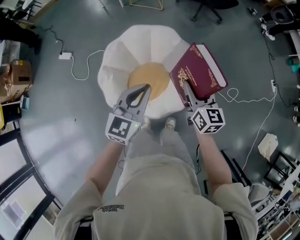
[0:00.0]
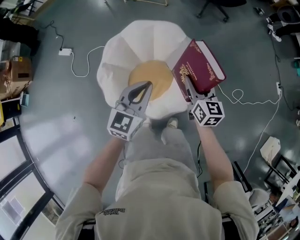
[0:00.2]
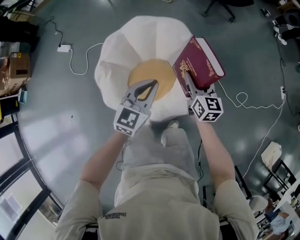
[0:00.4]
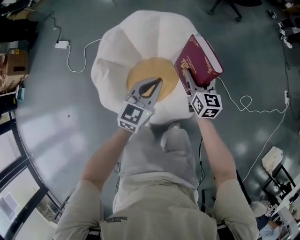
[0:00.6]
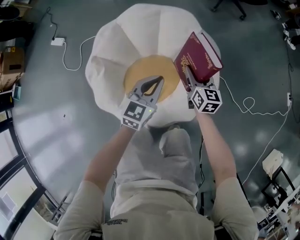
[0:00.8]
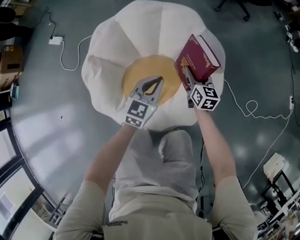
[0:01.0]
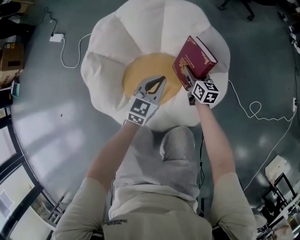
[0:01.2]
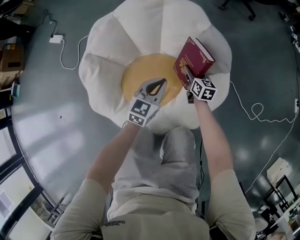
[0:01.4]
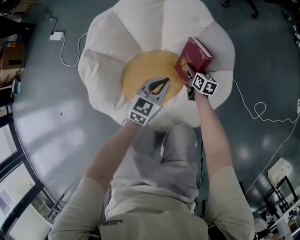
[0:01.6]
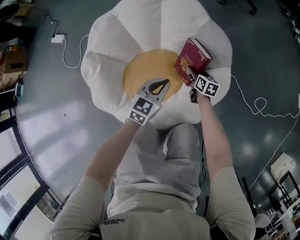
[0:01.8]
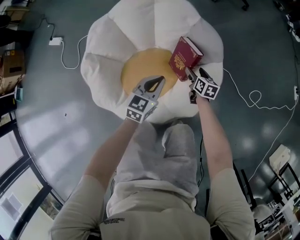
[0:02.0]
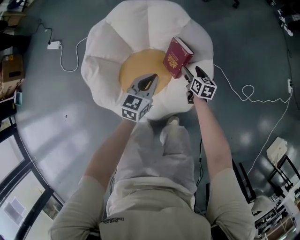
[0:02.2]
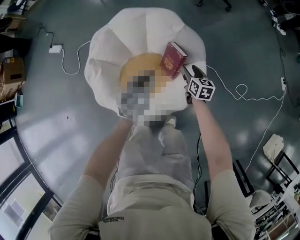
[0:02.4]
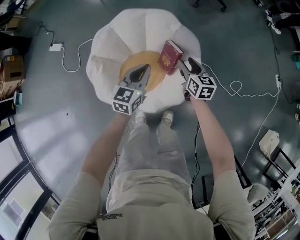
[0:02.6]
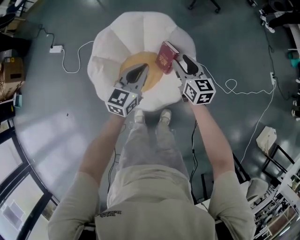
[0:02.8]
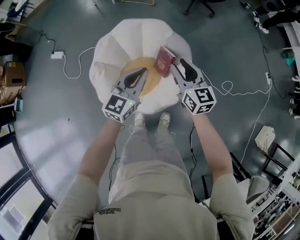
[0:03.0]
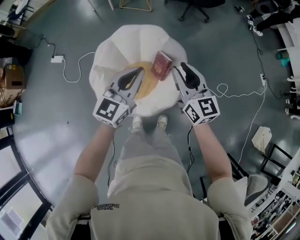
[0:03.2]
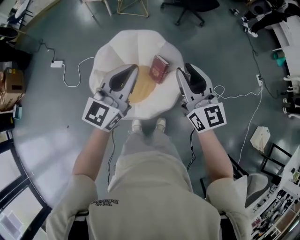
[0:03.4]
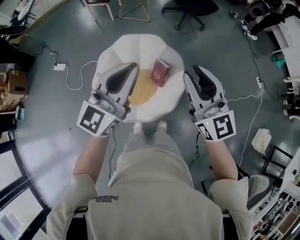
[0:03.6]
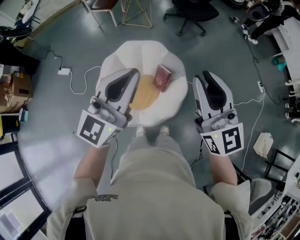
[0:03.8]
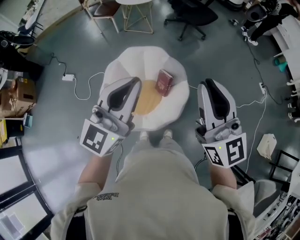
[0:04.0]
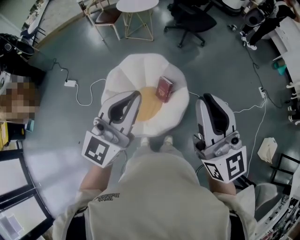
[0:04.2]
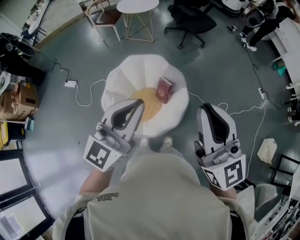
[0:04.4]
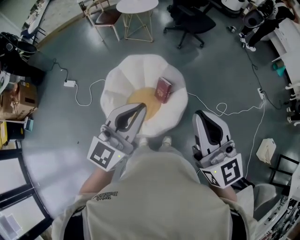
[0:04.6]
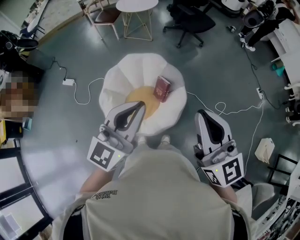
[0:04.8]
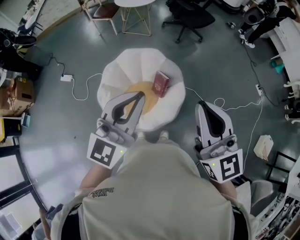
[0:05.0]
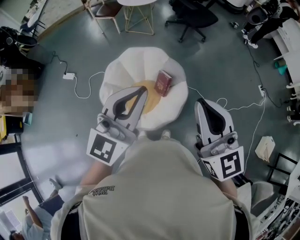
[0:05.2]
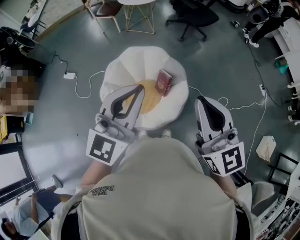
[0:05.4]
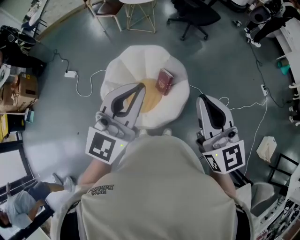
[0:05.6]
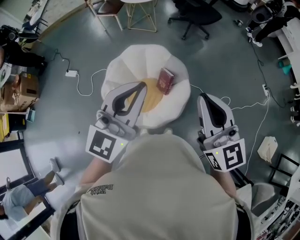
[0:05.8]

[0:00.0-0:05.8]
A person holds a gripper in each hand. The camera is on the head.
0:00.0 to 0:01.4: Both grippers travel together downward, some 50 cm.
0:01.4 to 0:02.8: Both grippers move upward, approximately 40 cm.
0:02.8 to 0:04.4: Both grippers travel together upward and backward, roughly 50 cm. The right gripper angles its fingers upward, by approximately 30 degrees, and closes; the left gripper swivels approximately 30 degrees.
0:04.4 to 0:05.8: The right gripper travels downward by roughly 5 cm.

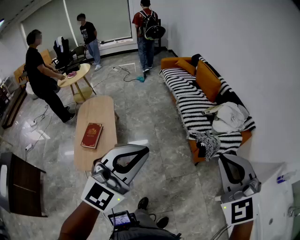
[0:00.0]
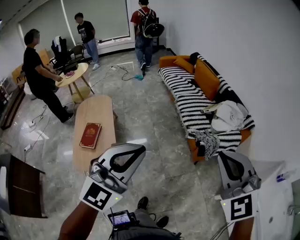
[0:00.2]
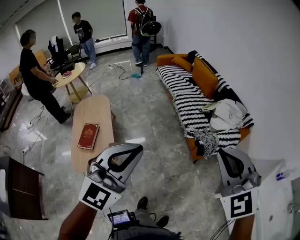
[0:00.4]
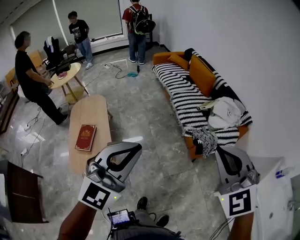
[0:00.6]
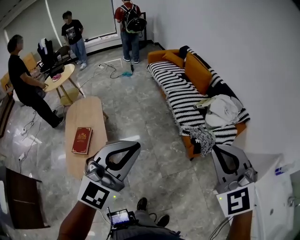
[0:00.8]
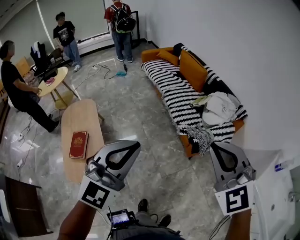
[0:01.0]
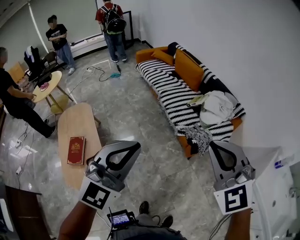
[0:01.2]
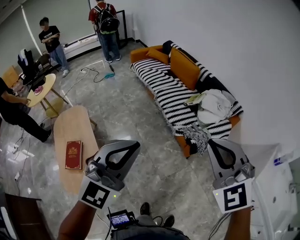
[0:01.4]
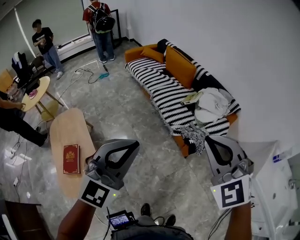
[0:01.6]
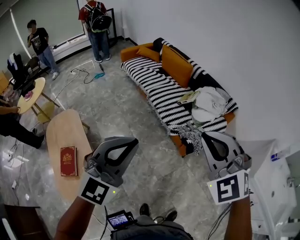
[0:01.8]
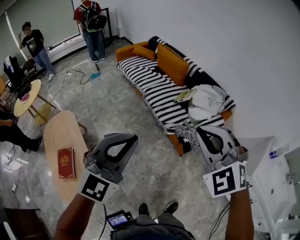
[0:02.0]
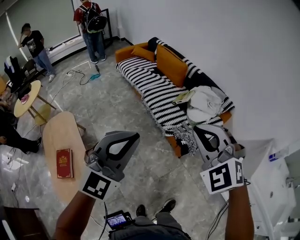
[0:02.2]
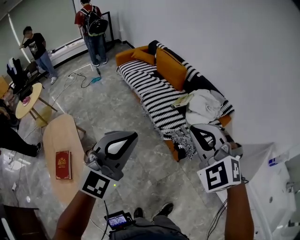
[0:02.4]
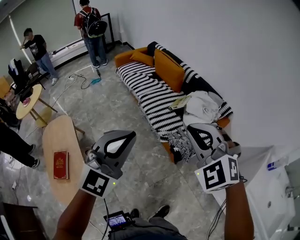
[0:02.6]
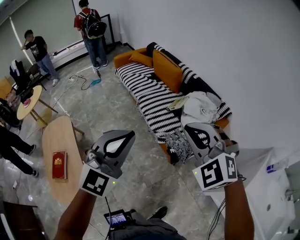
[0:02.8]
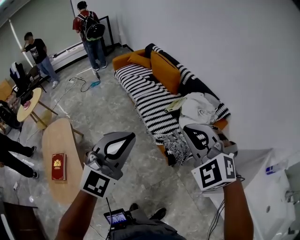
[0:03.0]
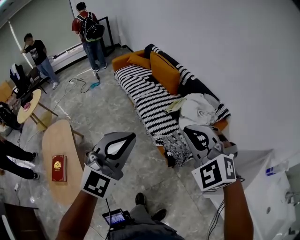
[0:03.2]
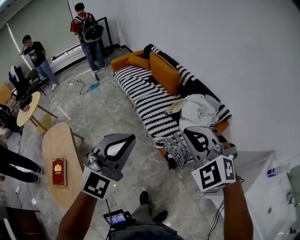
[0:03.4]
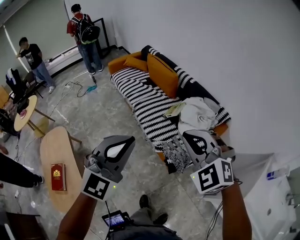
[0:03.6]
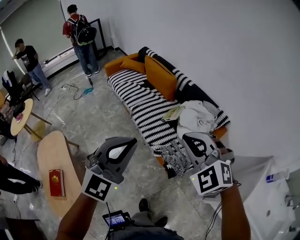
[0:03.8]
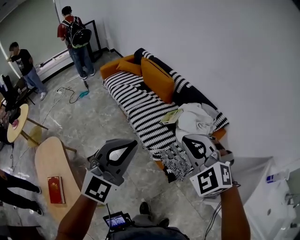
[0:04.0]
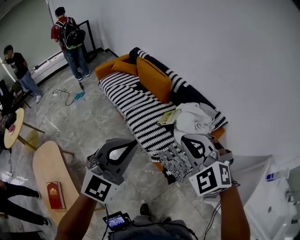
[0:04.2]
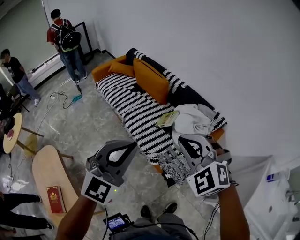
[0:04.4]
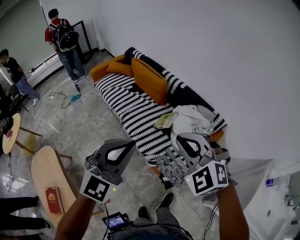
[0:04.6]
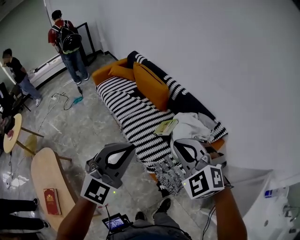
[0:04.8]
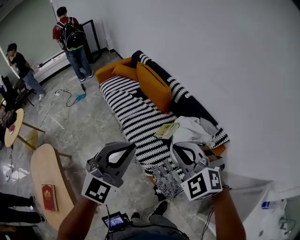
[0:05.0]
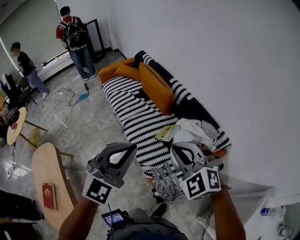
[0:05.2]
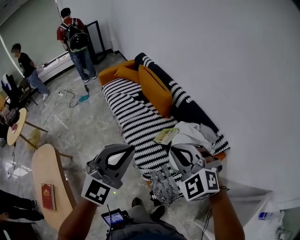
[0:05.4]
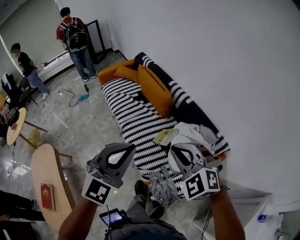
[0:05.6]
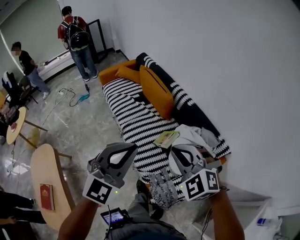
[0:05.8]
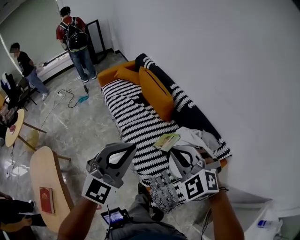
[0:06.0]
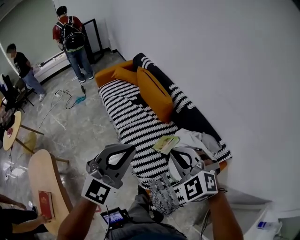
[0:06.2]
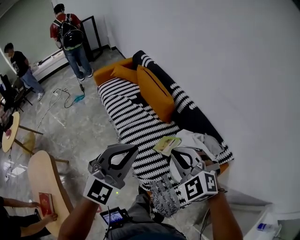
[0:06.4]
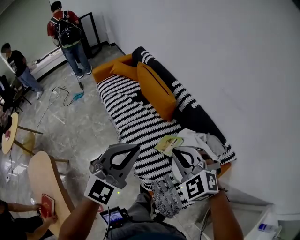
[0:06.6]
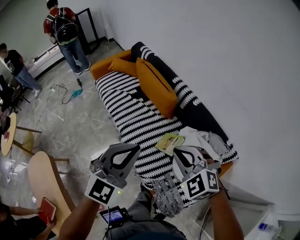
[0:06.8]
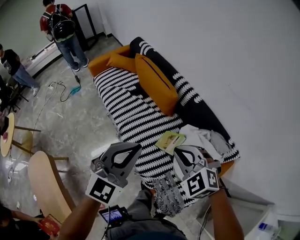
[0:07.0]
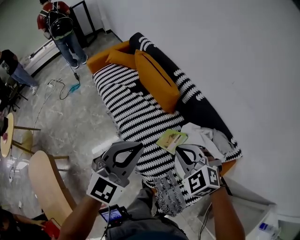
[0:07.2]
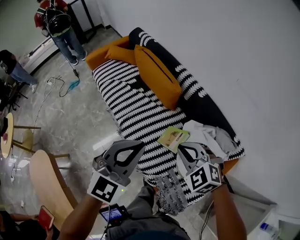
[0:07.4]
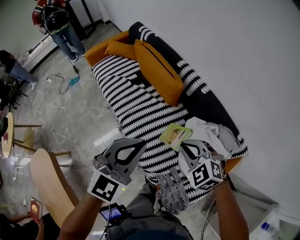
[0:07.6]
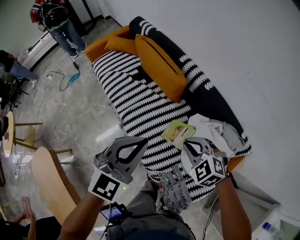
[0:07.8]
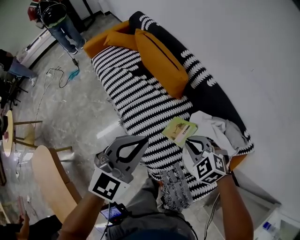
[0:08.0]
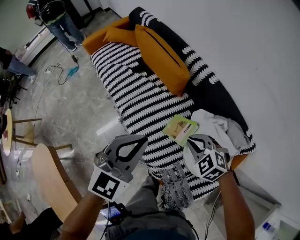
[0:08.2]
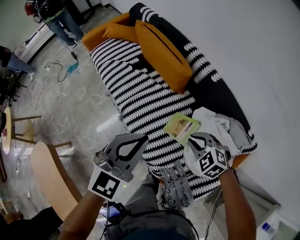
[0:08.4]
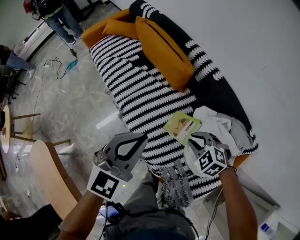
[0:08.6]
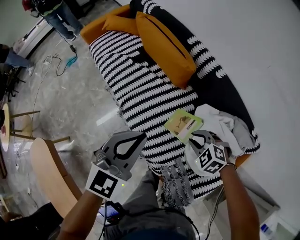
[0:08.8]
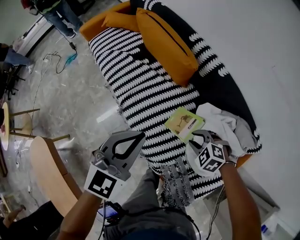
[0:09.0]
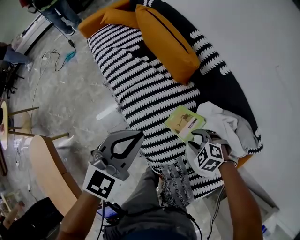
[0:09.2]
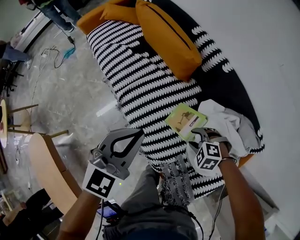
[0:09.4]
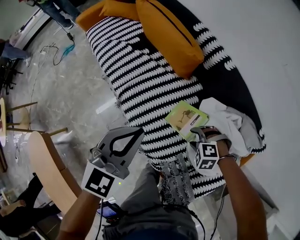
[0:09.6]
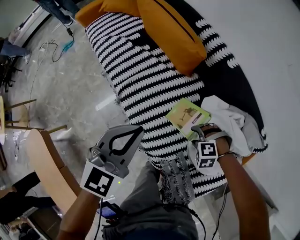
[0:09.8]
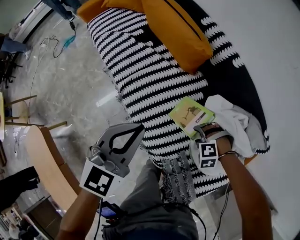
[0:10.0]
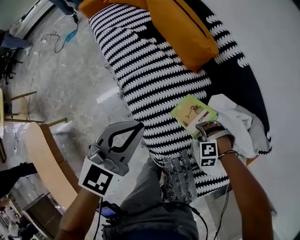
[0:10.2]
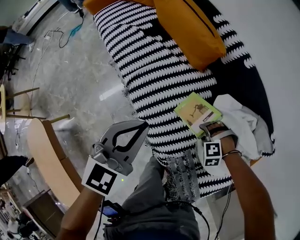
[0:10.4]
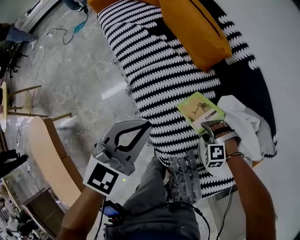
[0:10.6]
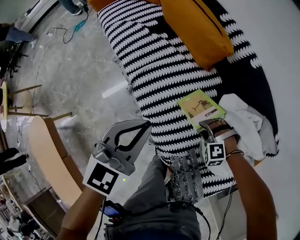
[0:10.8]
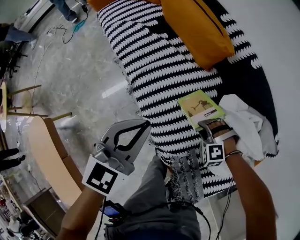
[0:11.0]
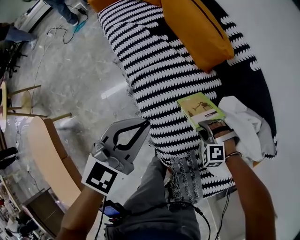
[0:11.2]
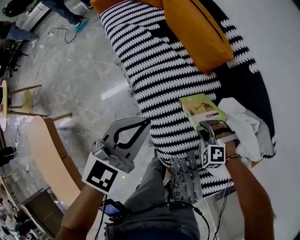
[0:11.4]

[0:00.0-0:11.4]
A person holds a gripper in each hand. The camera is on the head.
0:00.0 to 0:01.4: The left gripper is displaced forward by approximately 15 cm, while the right gripper moves forward and to the left, roughly 15 cm.
0:01.4 to 0:02.8: The two grippers go approximately 20 cm forward and to the right.
0:02.8 to 0:04.2: Both grippers travel together forward, some 15 cm.
0:04.2 to 0:05.6: The grippers both shift forward and to the right by some 20 cm.
0:05.6 to 0:07.2: Both grippers move forward and downward, roughly 25 cm.
0:07.2 to 0:08.6: The right gripper is displaced downward by about 20 cm, and swivels approximately 20 degrees, while the left gripper shifts some 15 cm downward and forward.
0:08.6 to 0:10.0: The left gripper shifts about 10 cm downward, while the right gripper moves downward, some 20 cm, changes its angle by approximately 50 degrees, and opens its fingers.
0:10.0 to 0:11.4: The right gripper moves some 10 cm, and closes up. Meanwhile the left gripper moves approximately 5 cm.

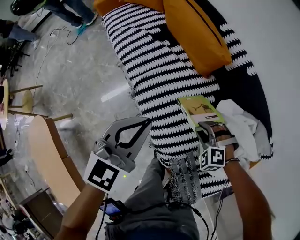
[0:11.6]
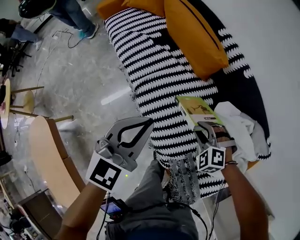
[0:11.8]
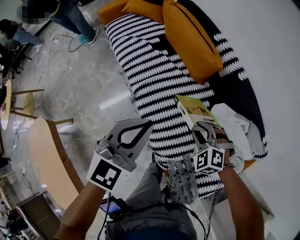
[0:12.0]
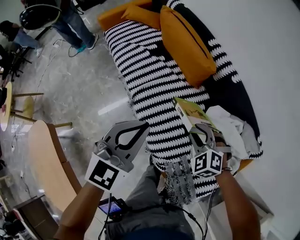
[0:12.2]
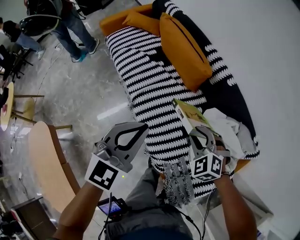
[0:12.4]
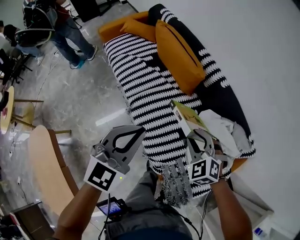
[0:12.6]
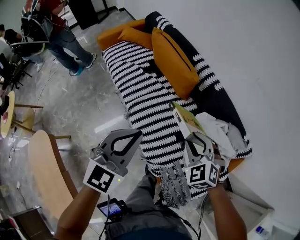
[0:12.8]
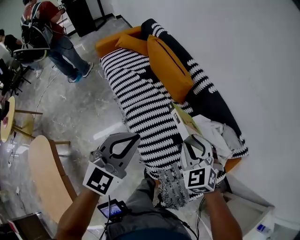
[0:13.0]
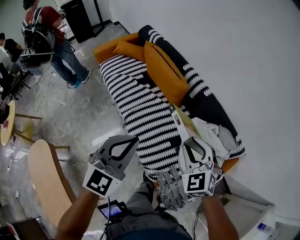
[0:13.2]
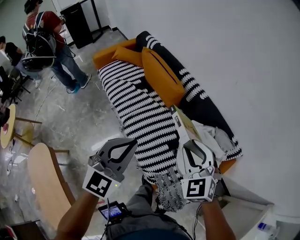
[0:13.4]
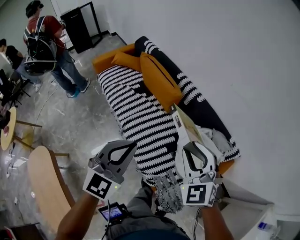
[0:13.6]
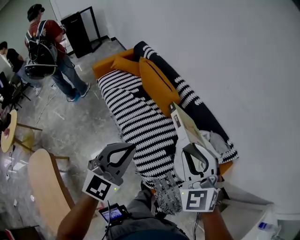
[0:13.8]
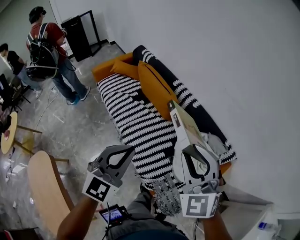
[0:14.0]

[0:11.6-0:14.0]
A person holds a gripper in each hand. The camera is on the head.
0:11.6 to 0:12.8: The left gripper moves upward and backward, about 15 cm; the right gripper travels upward by roughly 25 cm, and changes its angle by about 40 degrees.
0:12.8 to 0:14.0: The left gripper moves upward, backward and to the right, some 10 cm. The right gripper heads upward, covering about 25 cm, and rotates some 30 degrees.

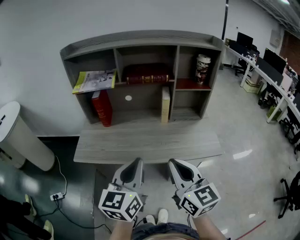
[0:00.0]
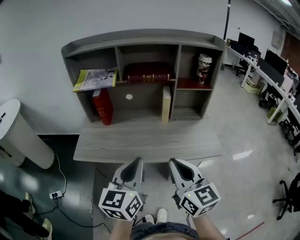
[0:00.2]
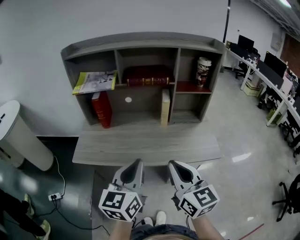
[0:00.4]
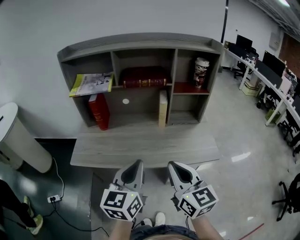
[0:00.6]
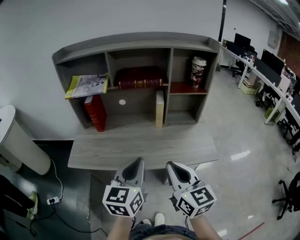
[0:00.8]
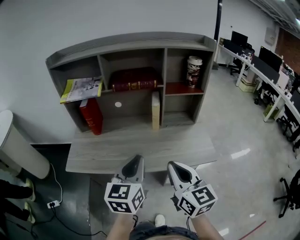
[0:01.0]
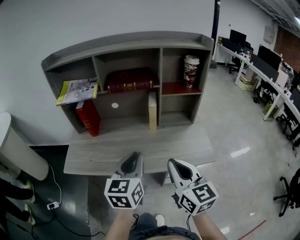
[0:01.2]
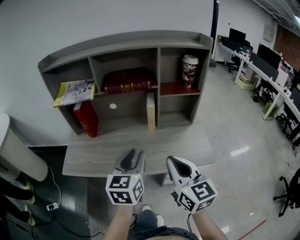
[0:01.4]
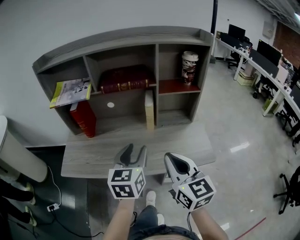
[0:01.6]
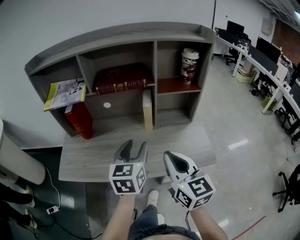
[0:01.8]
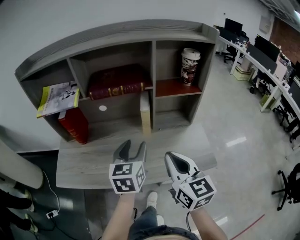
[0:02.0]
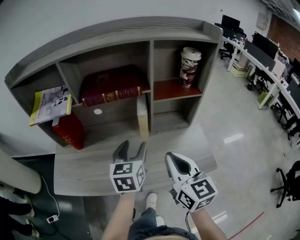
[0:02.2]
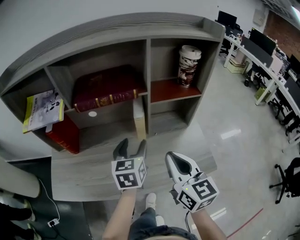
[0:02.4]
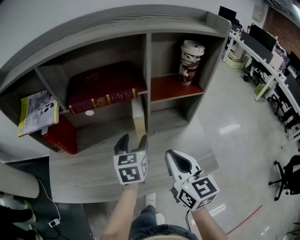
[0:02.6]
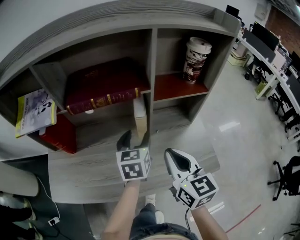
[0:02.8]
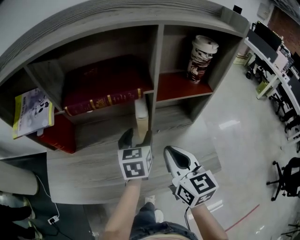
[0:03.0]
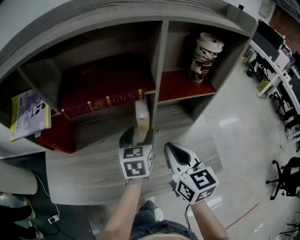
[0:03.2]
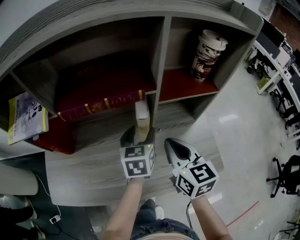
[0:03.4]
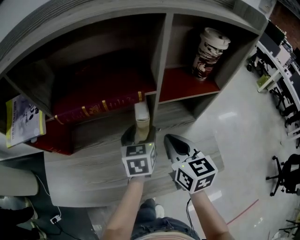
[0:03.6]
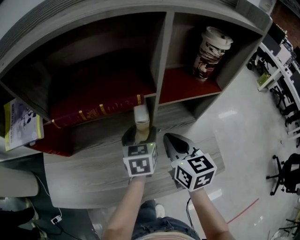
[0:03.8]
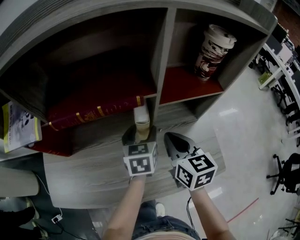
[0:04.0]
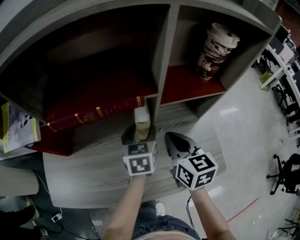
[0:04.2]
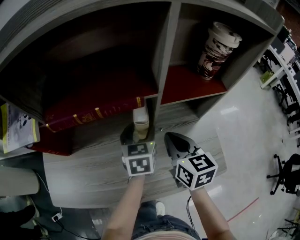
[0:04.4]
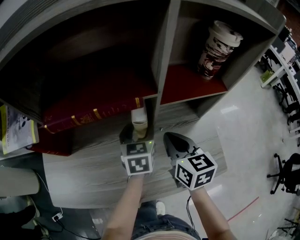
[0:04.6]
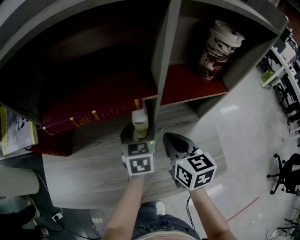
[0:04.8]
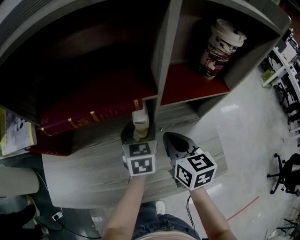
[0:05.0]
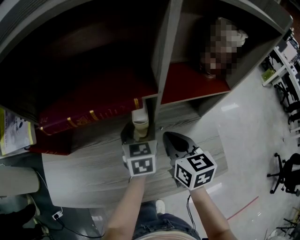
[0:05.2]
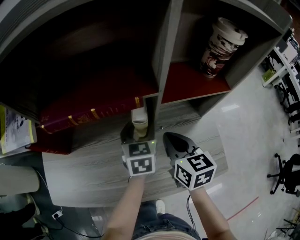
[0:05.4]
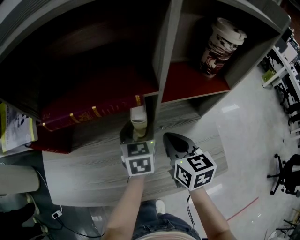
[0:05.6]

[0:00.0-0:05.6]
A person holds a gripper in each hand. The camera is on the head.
0:00.0 to 0:01.4: Both grippers travel together forward and to the right, approximately 15 cm. The left gripper opens up.
0:01.4 to 0:02.8: Both grippers move forward, about 20 cm. The left gripper opens its fingers.
0:02.8 to 0:04.2: The left gripper goes roughly 10 cm forward and downward, while the right gripper moves forward and downward, about 15 cm.
0:04.2 to 0:05.6: The grippers stay close to where they were, moving slightly.
